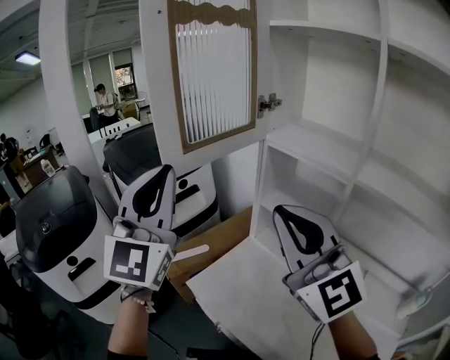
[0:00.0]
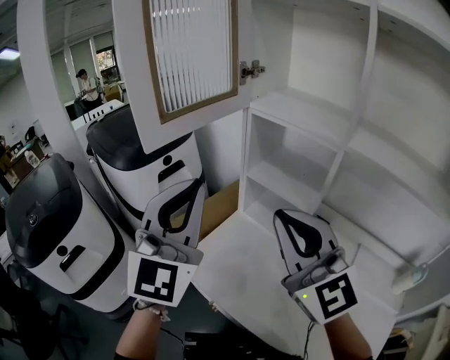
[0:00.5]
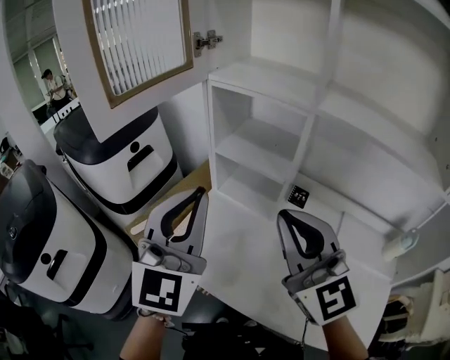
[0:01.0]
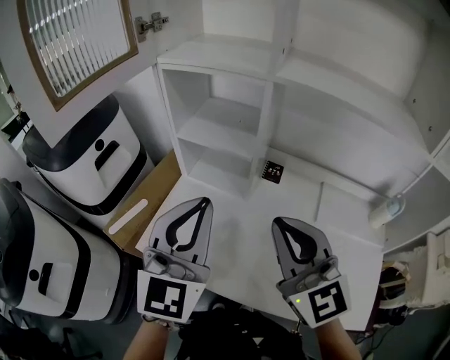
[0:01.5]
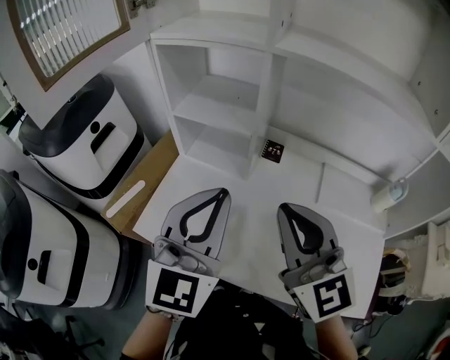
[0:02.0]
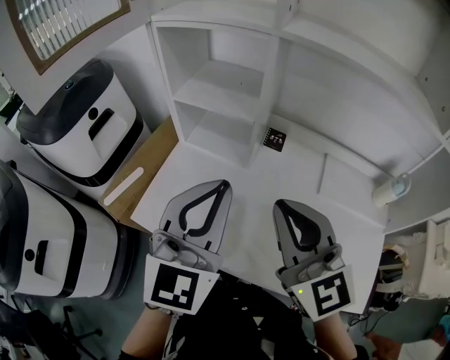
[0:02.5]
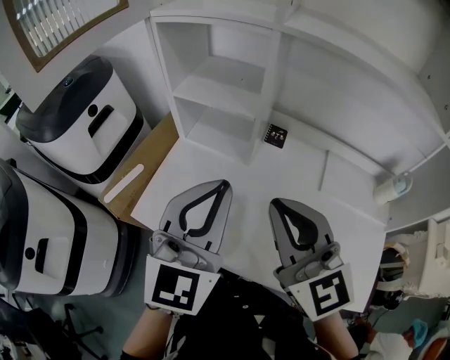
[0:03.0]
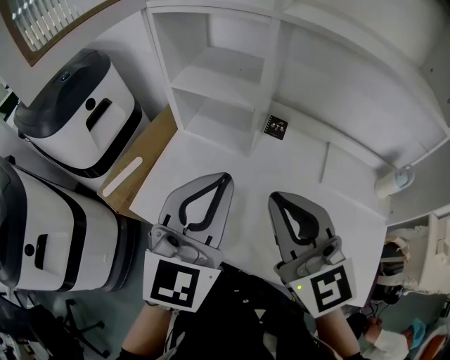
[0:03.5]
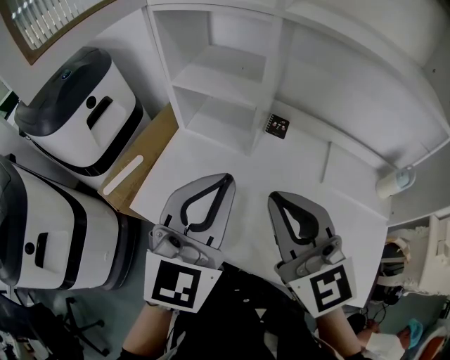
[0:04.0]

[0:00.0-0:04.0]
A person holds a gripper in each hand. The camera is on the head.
0:00.0 to 0:02.0: The left gripper shifts by about 35 cm, and changes its angle by approximately 40 degrees, while the right gripper ends up approximately 25 cm from where it was, and rotates some 40 degrees.
0:02.0 to 0:04.0: The grippers move only a little.

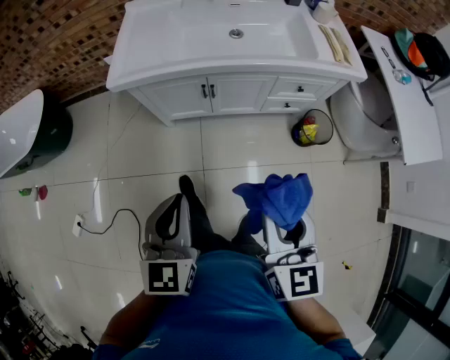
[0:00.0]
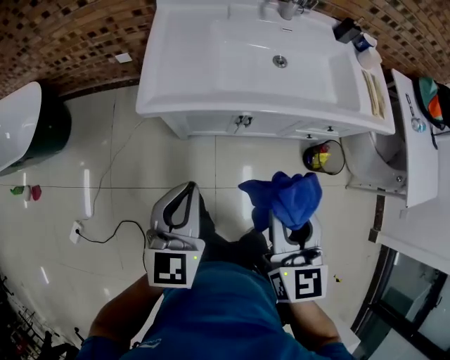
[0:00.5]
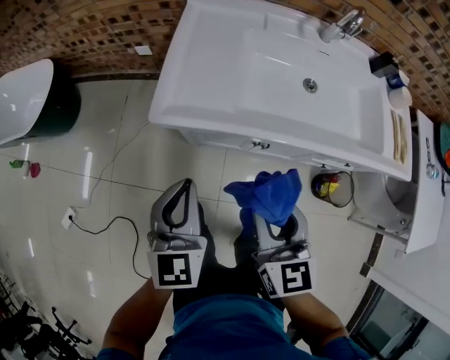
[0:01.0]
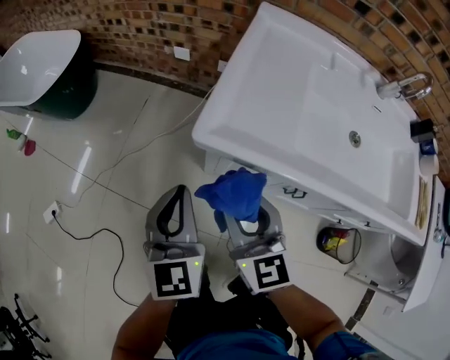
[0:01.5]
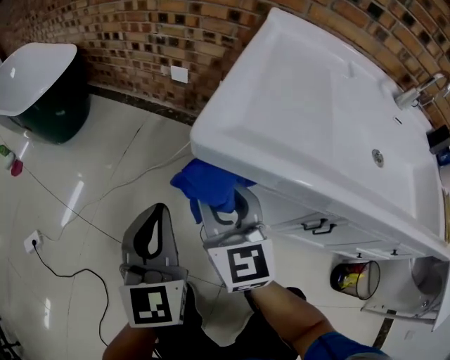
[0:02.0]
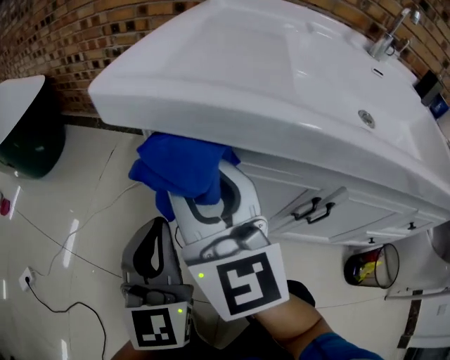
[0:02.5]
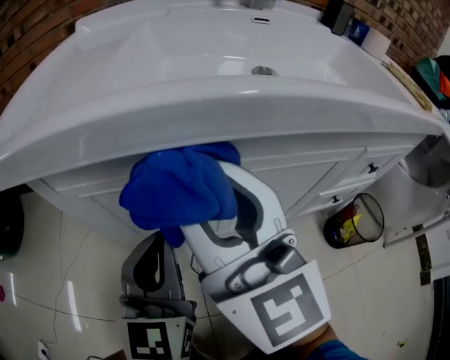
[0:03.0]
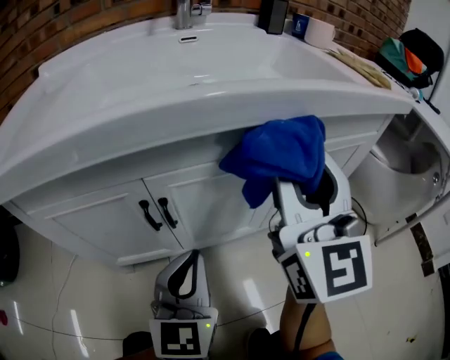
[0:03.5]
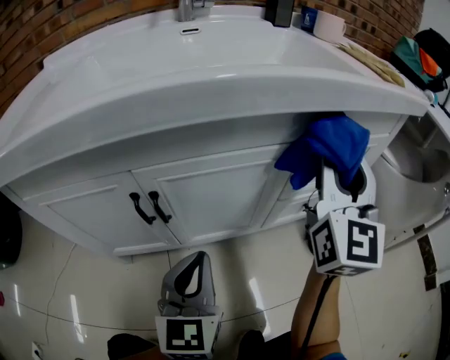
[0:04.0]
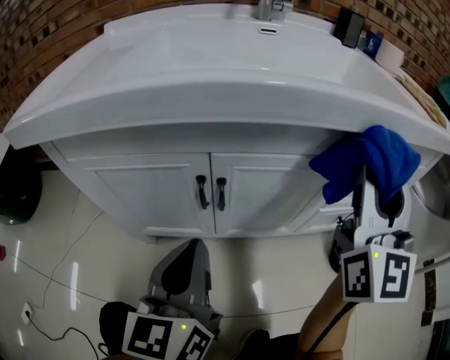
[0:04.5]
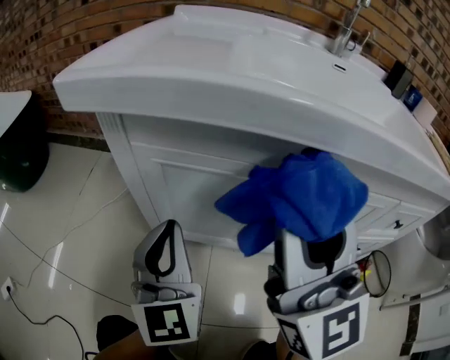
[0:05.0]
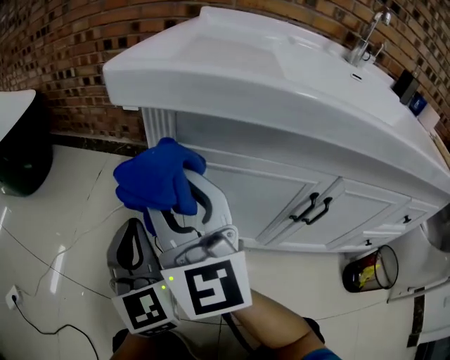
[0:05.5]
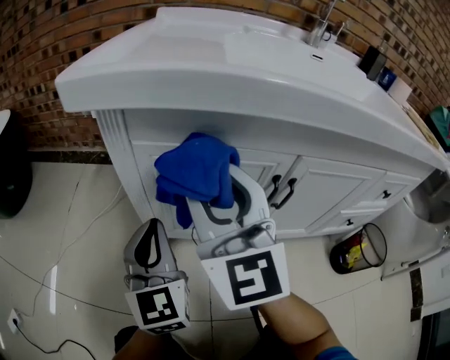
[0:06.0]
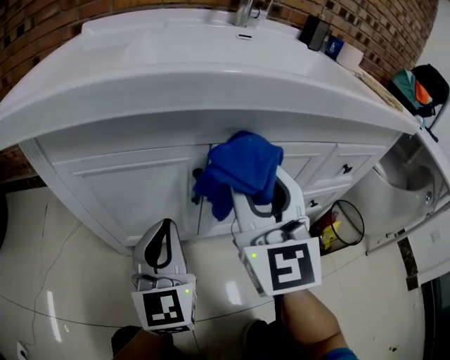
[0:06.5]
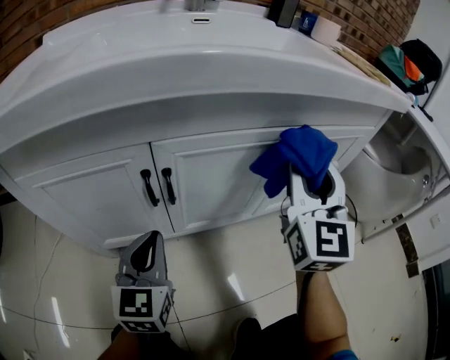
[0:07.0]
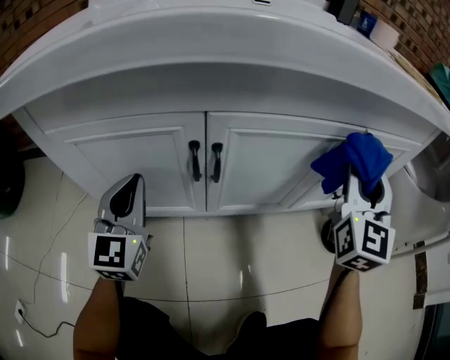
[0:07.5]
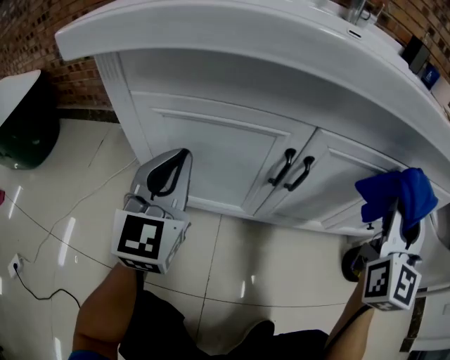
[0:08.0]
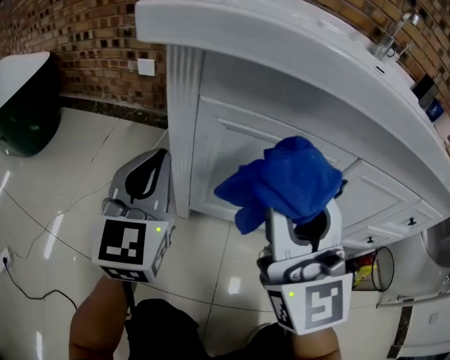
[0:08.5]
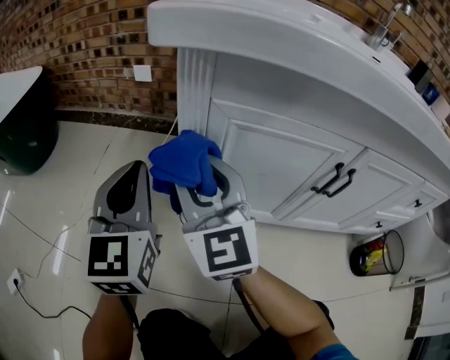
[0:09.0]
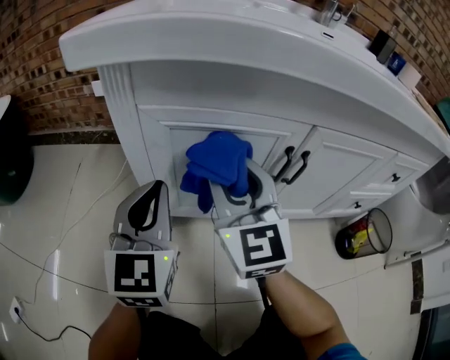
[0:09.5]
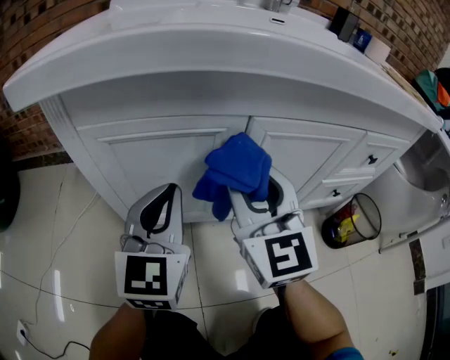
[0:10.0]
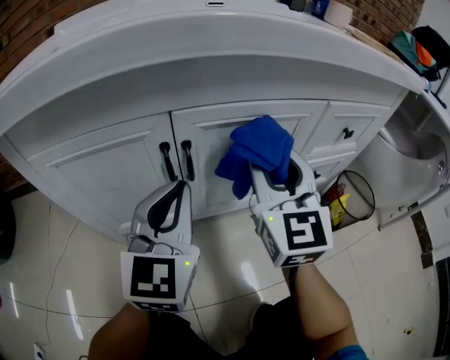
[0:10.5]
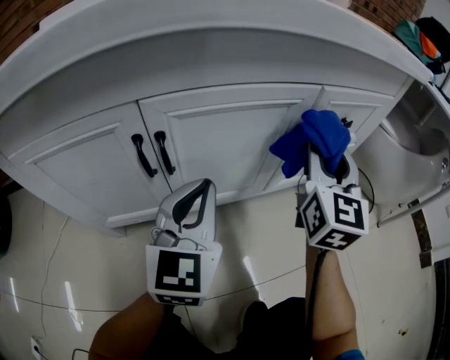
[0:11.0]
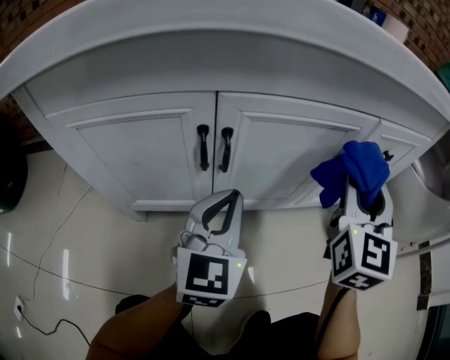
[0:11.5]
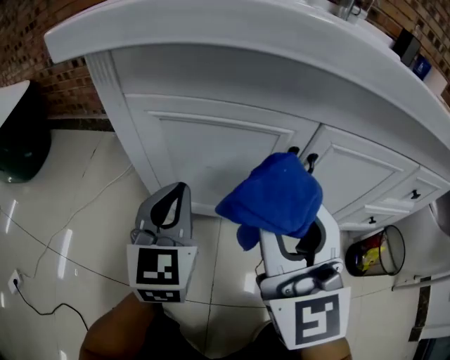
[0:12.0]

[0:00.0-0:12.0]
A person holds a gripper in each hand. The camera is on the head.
0:00.0 to 0:02.0: Both grippers are carried some 50 cm. The right gripper changes its angle by some 40 degrees. The left gripper rotates some 30 degrees.
0:02.0 to 0:04.0: The two grippers travel together, roughly 60 cm. The left gripper changes its angle by roughly 40 degrees. The right gripper rotates roughly 60 degrees.
0:04.0 to 0:06.0: The left gripper moves roughly 35 cm, and rotates some 30 degrees. The right gripper moves approximately 5 cm upward and comes back, and swivels about 40 degrees.
0:06.0 to 0:08.0: The left gripper reaches roughly 5 cm downward, then returns; the right gripper ends up approximately 40 cm from where it was, and rotates about 40 degrees.
0:08.0 to 0:10.0: The right gripper changes its angle by roughly 30 degrees.

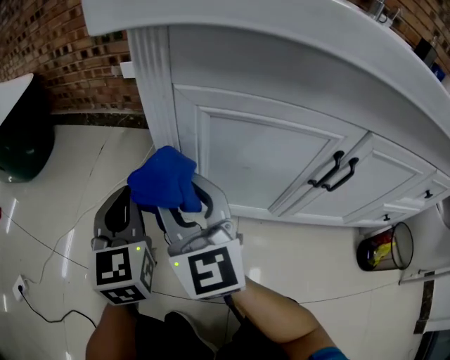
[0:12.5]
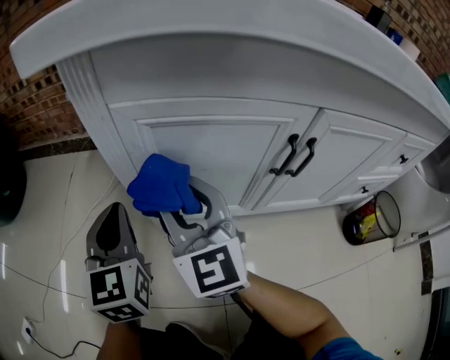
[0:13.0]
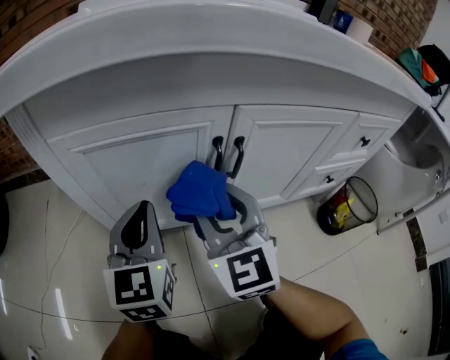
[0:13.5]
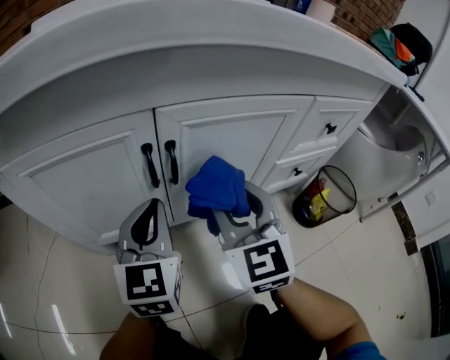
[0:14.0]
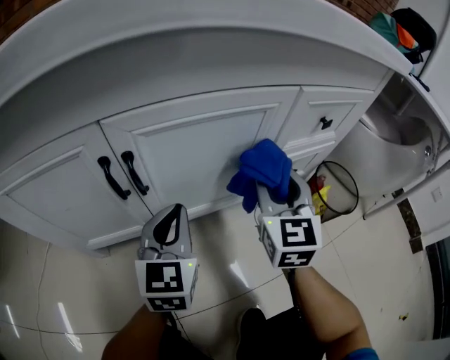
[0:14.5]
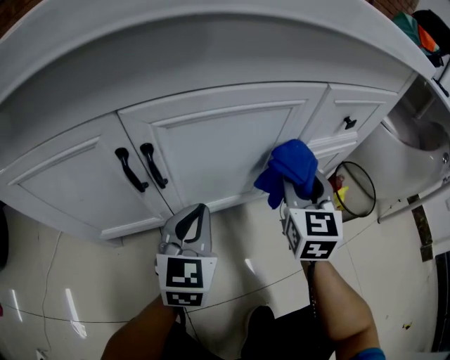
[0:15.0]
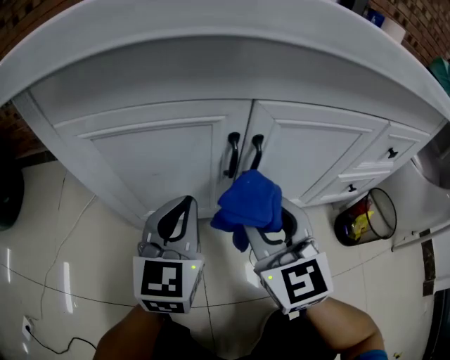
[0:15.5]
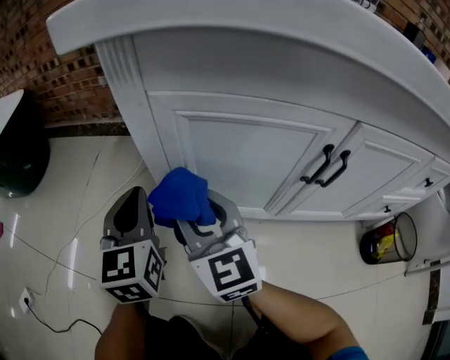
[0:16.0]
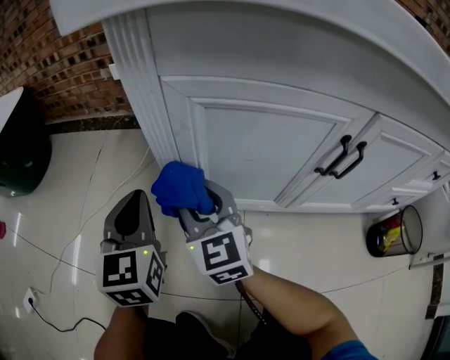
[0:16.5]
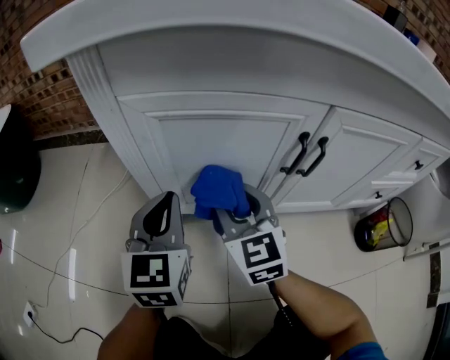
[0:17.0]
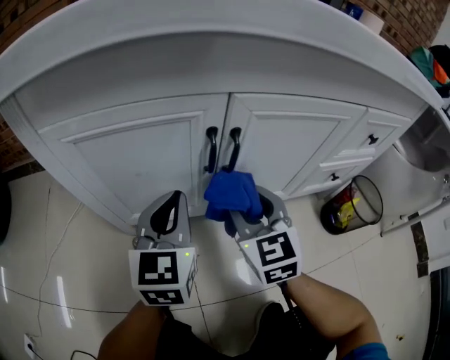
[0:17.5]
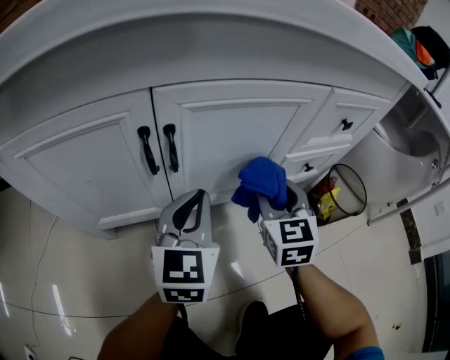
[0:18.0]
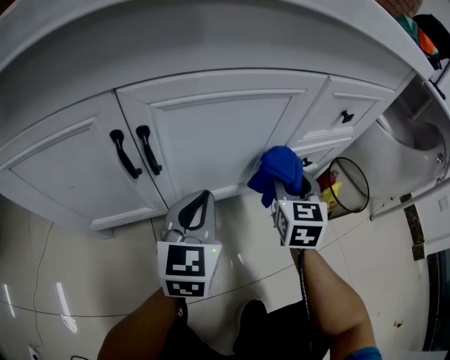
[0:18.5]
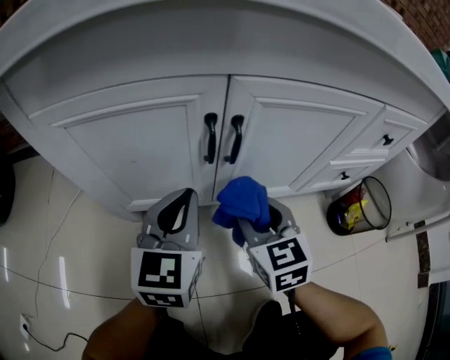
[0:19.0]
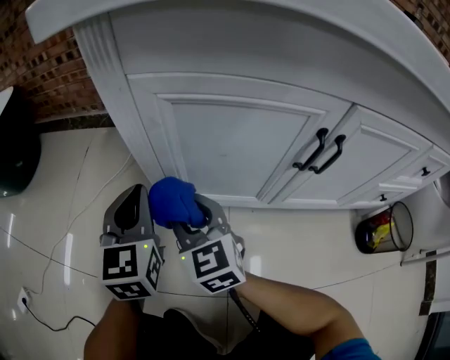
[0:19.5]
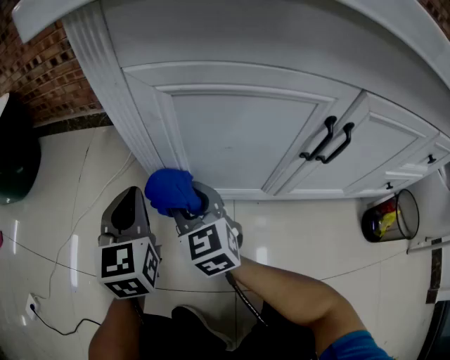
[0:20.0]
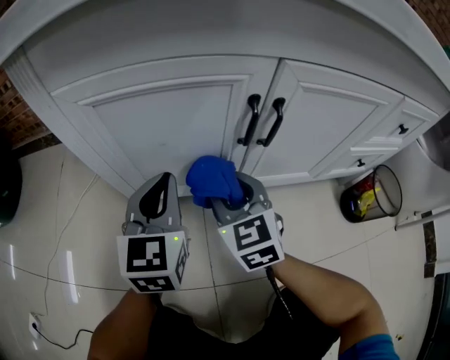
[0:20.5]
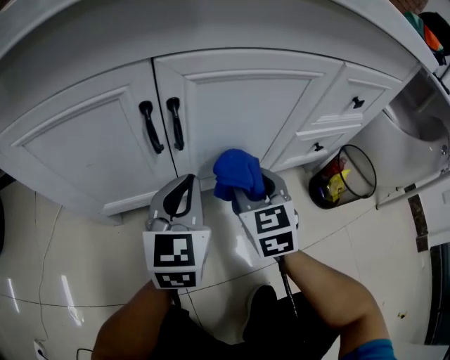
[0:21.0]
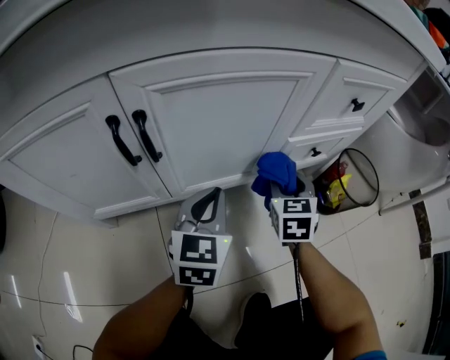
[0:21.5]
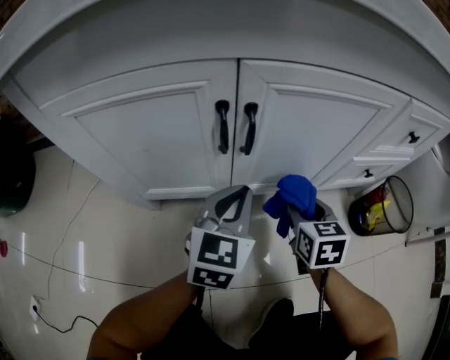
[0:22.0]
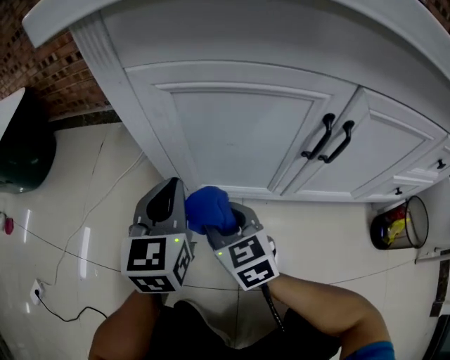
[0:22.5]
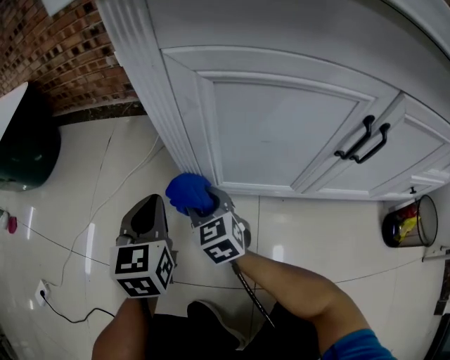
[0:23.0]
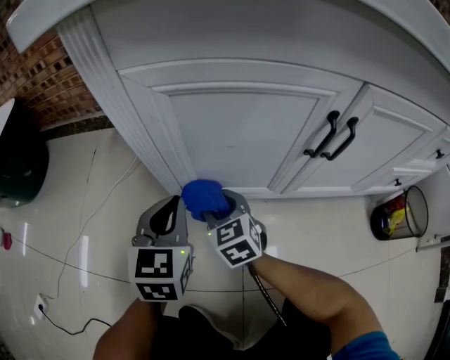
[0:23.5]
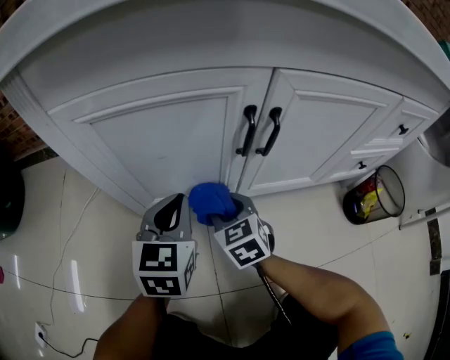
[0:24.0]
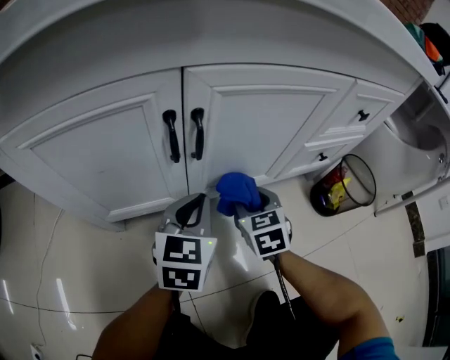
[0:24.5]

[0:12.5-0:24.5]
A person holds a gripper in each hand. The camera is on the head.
0:12.5 to 0:14.5: The two grippers travel together, some 50 cm. The right gripper swivels some 50 degrees. Meanwhile the left gripper changes its angle by roughly 40 degrees.
0:14.5 to 0:16.5: The pair of grippers is taken approximately 50 cm. The right gripper changes its angle by some 50 degrees, while the left gripper changes its angle by about 40 degrees.
0:16.5 to 0:18.5: The pair of grippers is taken roughly 50 cm. The left gripper swivels roughly 40 degrees; the right gripper swivels some 50 degrees.
0:18.5 to 0:20.5: The right gripper changes its angle by approximately 40 degrees, while the left gripper swivels some 20 degrees.
0:20.5 to 0:22.5: The left gripper moves about 10 cm downward and comes back. The right gripper rotates approximately 20 degrees.
0:22.5 to 0:24.5: The right gripper shifts by some 35 cm, and swivels some 40 degrees; the left gripper moves some 30 cm, and swivels about 30 degrees.
